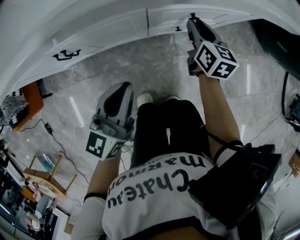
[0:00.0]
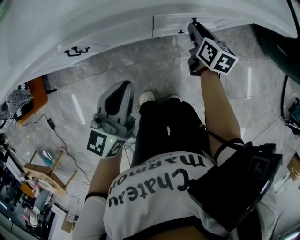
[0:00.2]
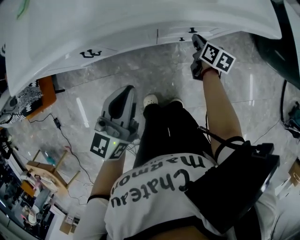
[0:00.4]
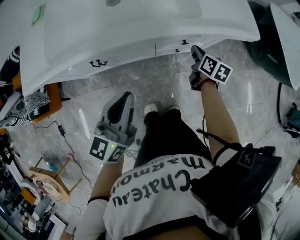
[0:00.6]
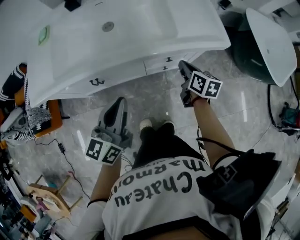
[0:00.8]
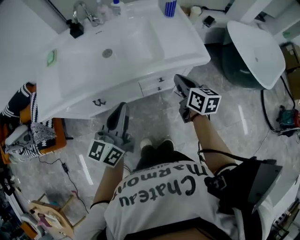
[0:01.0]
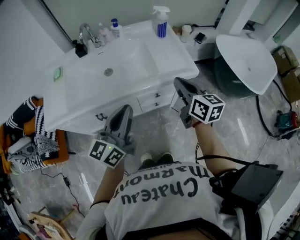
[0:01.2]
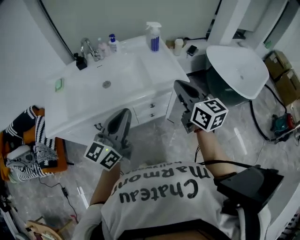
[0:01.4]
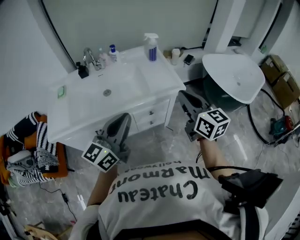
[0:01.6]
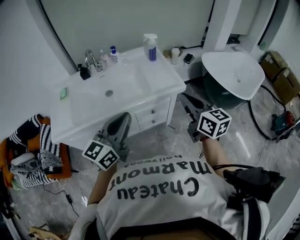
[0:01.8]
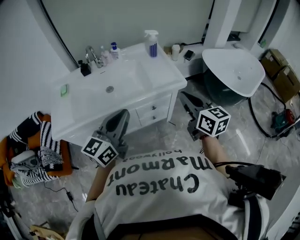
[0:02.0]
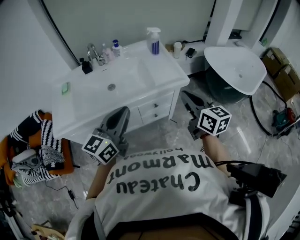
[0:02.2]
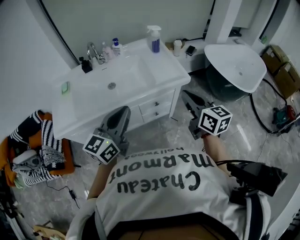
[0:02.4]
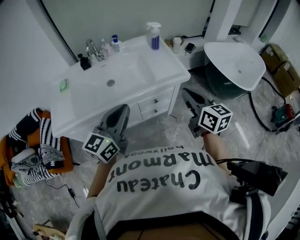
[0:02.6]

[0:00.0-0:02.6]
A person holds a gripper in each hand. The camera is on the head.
0:00.0 to 0:01.2: Both grippers travel together upward, roughly 40 cm. The right gripper closes.
0:01.2 to 0:02.6: The right gripper shifts approximately 10 cm backward and upward; the left gripper goes about 5 cm upward.

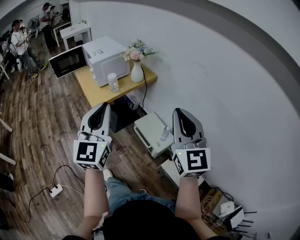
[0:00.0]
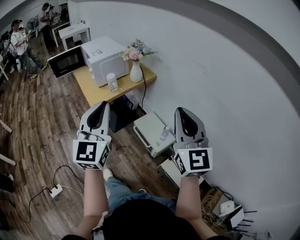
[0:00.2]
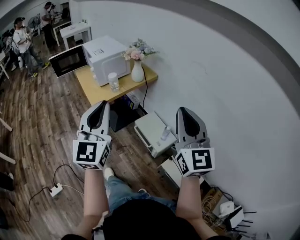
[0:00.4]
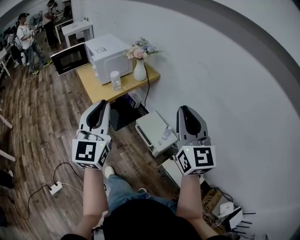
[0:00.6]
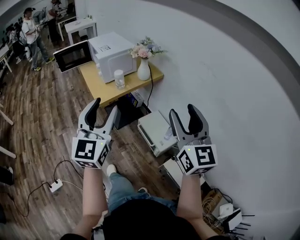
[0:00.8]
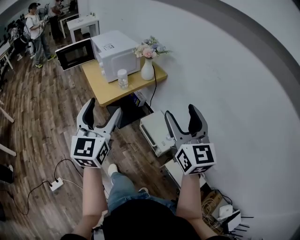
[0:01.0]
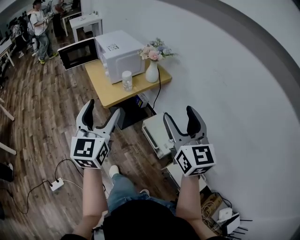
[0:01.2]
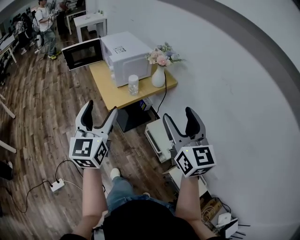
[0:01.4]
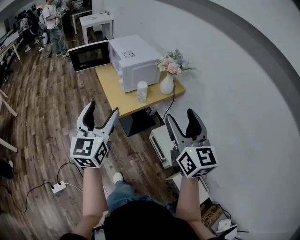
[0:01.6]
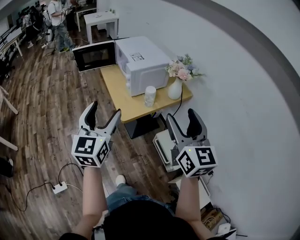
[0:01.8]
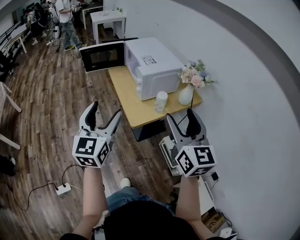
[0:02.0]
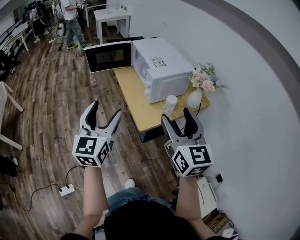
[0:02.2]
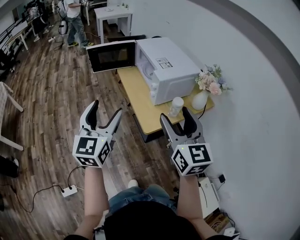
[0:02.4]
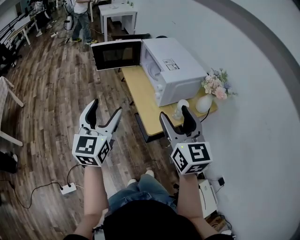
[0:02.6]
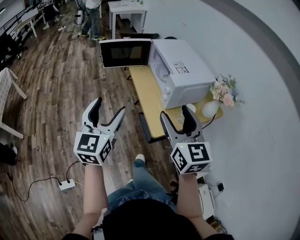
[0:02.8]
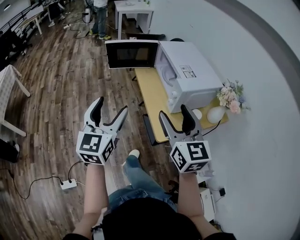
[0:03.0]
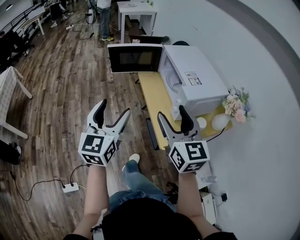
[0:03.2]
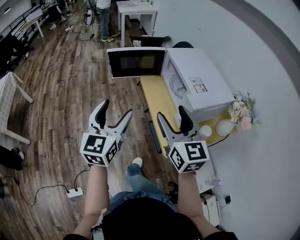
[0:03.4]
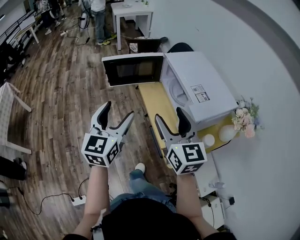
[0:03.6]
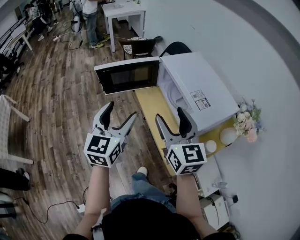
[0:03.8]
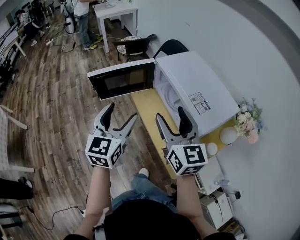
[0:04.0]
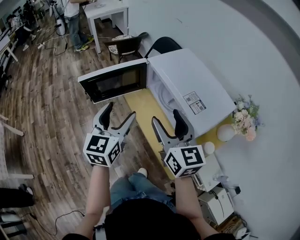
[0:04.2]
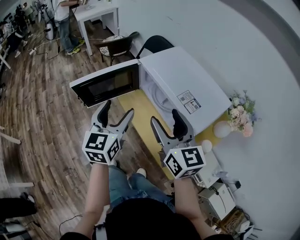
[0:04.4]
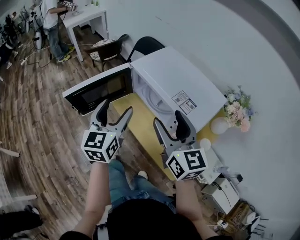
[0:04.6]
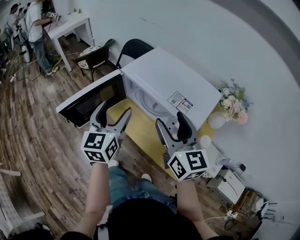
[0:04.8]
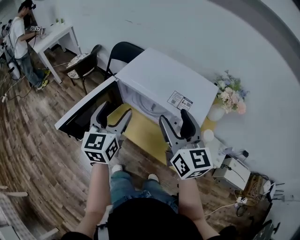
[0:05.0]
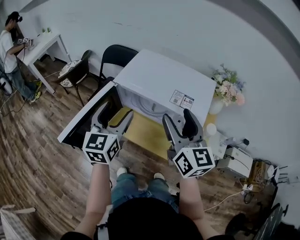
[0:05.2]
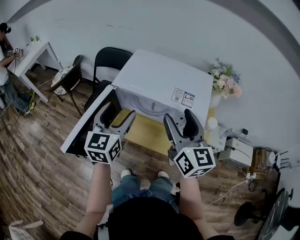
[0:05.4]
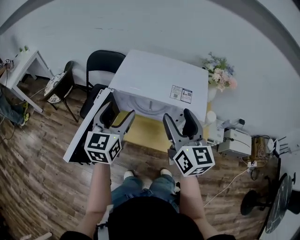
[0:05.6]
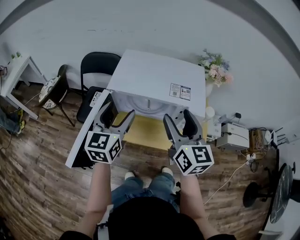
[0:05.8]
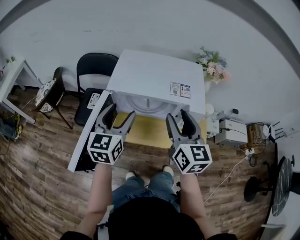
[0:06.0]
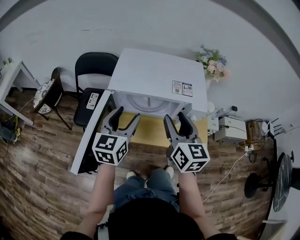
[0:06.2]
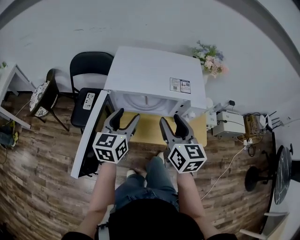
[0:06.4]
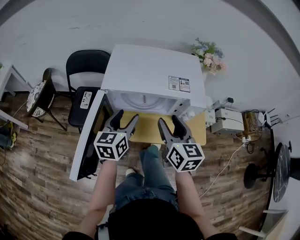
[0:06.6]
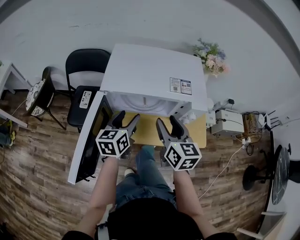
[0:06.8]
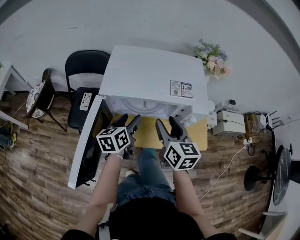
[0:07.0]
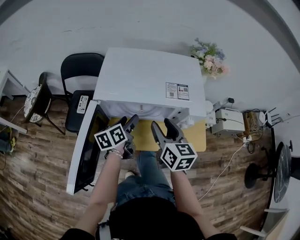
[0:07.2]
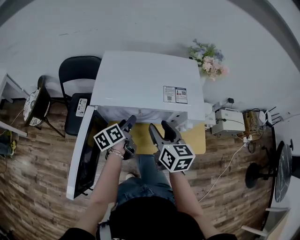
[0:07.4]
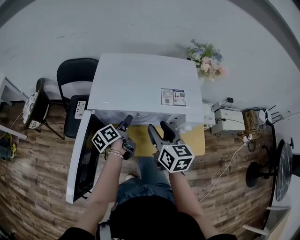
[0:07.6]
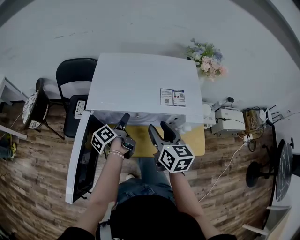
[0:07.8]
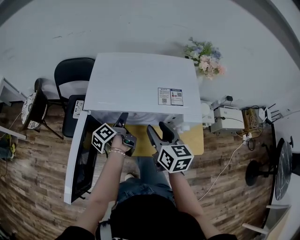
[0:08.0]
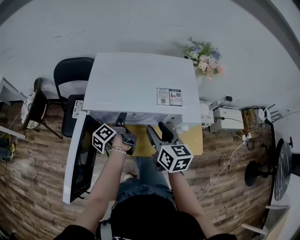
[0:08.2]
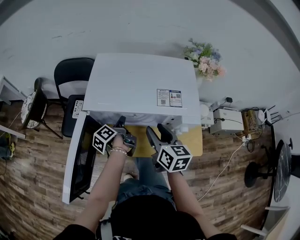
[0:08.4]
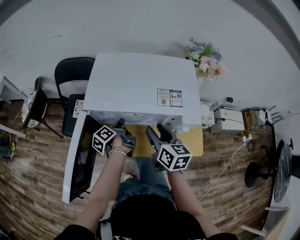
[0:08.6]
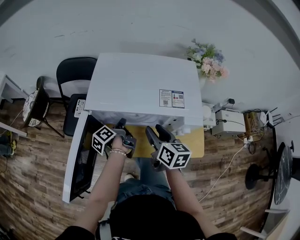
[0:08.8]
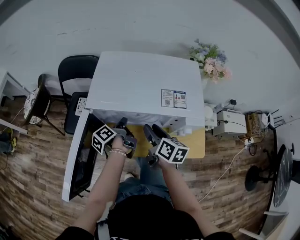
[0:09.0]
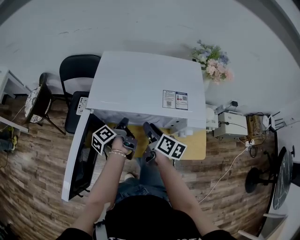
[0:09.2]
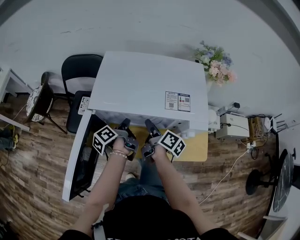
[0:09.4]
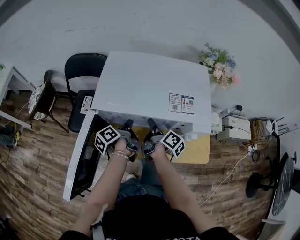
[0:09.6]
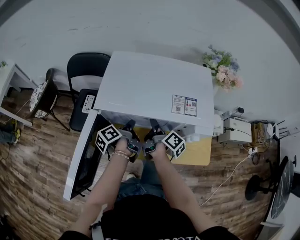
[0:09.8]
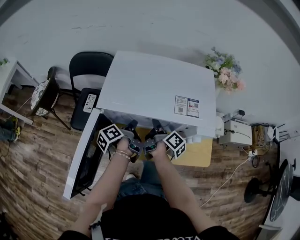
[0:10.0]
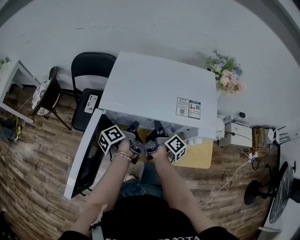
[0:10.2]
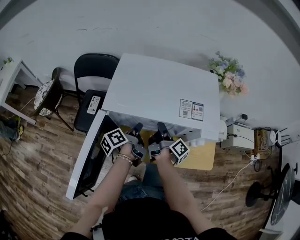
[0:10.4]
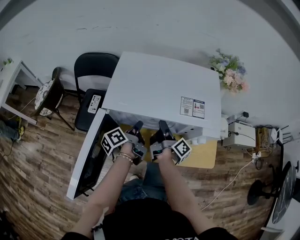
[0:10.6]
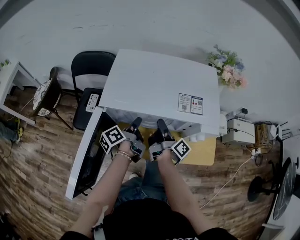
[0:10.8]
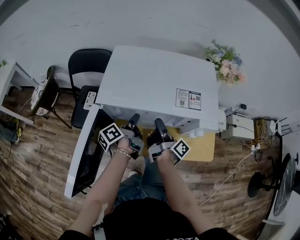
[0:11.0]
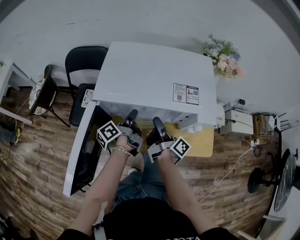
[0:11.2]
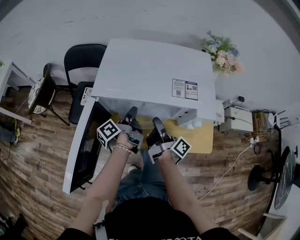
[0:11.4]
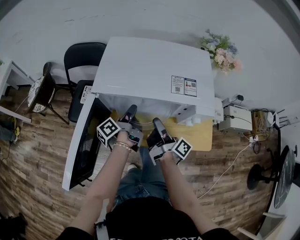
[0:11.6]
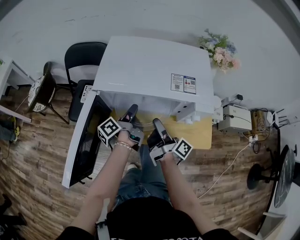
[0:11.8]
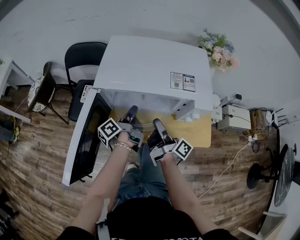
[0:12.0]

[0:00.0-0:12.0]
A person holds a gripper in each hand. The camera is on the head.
0:00.0 to 0:01.6: The grippers both shift to the left and forward by roughly 20 cm. The right gripper turns by approximately 20 degrees, and opens, while the left gripper opens its fingers.
0:01.6 to 0:03.0: The two grippers go some 35 cm to the left and forward.
0:03.0 to 0:04.4: Both grippers move forward, roughly 30 cm. The left gripper turns by some 20 degrees.
0:04.4 to 0:06.0: The right gripper swivels some 50 degrees. The left gripper changes place by some 15 cm, and swivels roughly 50 degrees.
0:06.0 to 0:07.6: The left gripper moves downward and forward, about 25 cm, and rotates around the line of its fingers by about 60 degrees, counterclockwise from behind, while the right gripper heads downward and forward, covering approximately 15 cm.
0:07.6 to 0:09.0: The left gripper turns by some 20 degrees, and closes, while the right gripper goes approximately 5 cm downward, and turns by roughly 20 degrees.
0:09.0 to 0:10.4: The right gripper moves forward, some 5 cm, twists some 50 degrees clockwise, seen from behind, and closes up.
0:10.4 to 0:12.0: The right gripper goes approximately 10 cm backward.

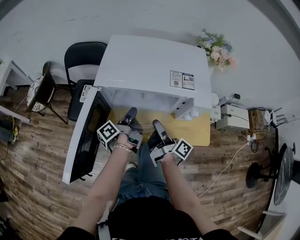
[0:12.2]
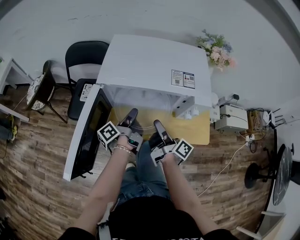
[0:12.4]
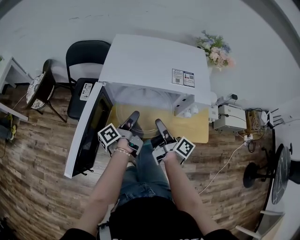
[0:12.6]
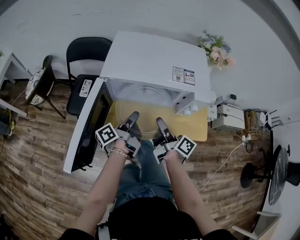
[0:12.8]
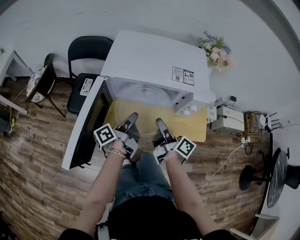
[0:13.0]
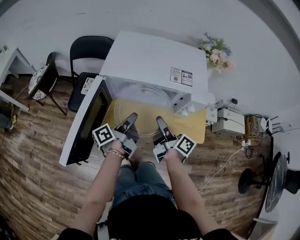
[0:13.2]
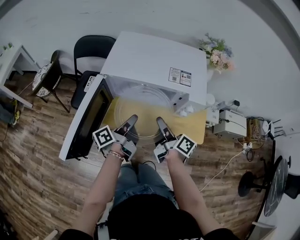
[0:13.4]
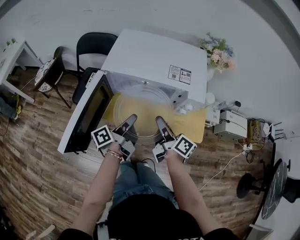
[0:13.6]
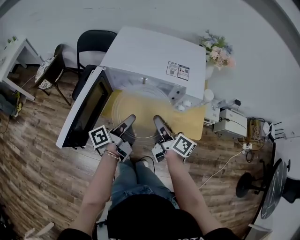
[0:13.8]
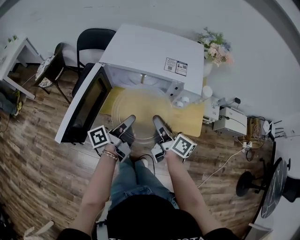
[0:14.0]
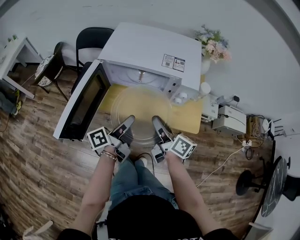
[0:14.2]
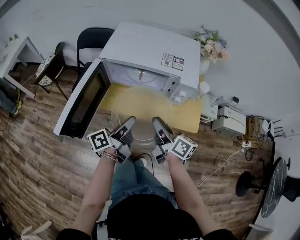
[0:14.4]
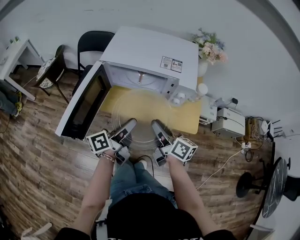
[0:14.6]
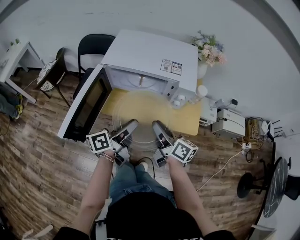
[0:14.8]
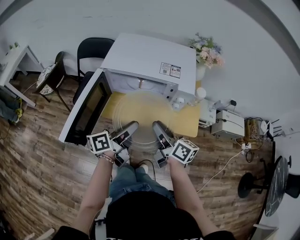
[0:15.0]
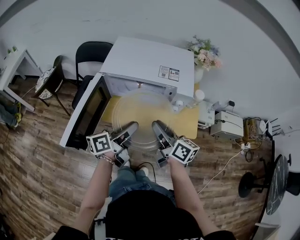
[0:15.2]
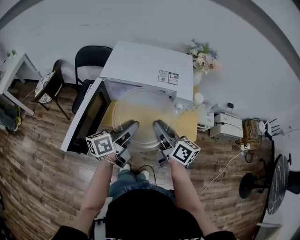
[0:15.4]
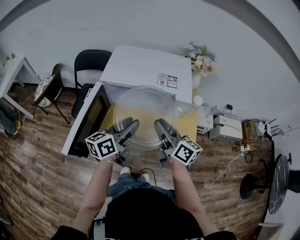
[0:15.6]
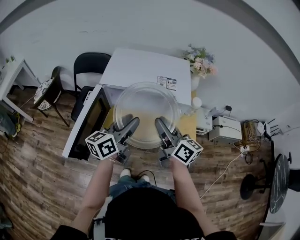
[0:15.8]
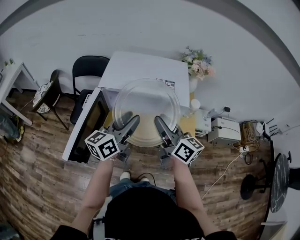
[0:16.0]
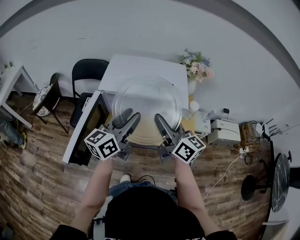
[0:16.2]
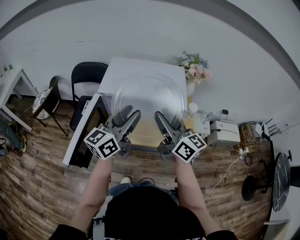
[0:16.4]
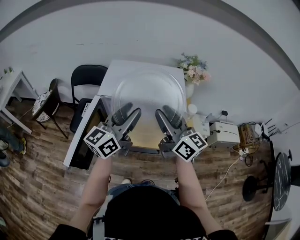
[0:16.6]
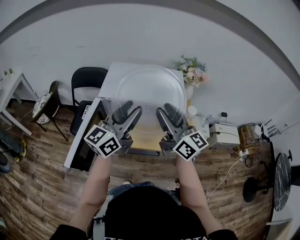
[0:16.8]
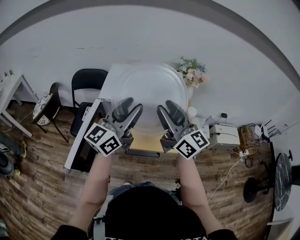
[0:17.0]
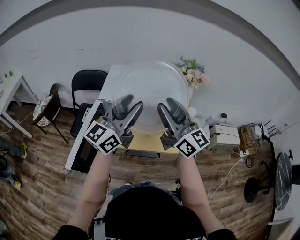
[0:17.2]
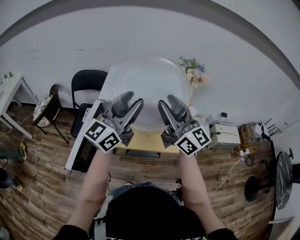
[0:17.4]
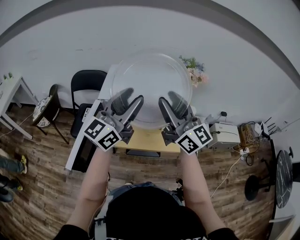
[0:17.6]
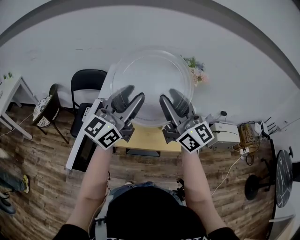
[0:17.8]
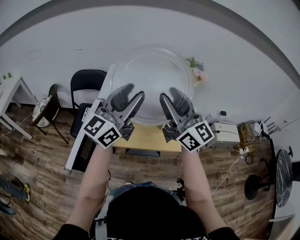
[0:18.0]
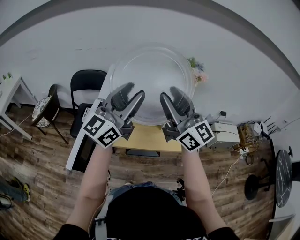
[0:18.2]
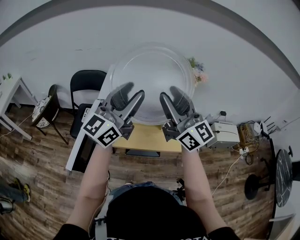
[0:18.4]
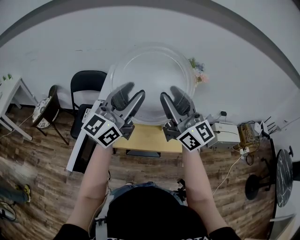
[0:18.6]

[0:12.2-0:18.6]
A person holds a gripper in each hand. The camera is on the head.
0:12.2 to 0:13.8: The right gripper goes about 10 cm backward and upward, and swivels roughly 30 degrees. Meanwhile the left gripper moves backward and upward, about 15 cm.
0:13.8 to 0:15.4: Both grippers travel together upward, approximately 5 cm. The left gripper turns by approximately 30 degrees.
0:15.4 to 0:17.0: The two grippers go approximately 15 cm upward. The left gripper turns by about 40 degrees, while the right gripper rotates some 40 degrees.
0:17.0 to 0:18.6: Both grippers move upward, about 5 cm.

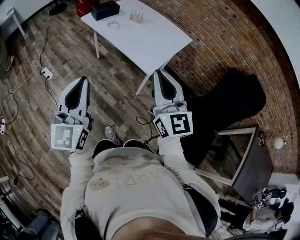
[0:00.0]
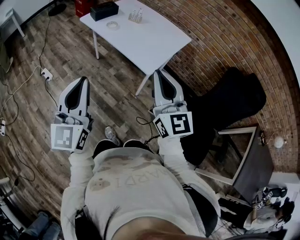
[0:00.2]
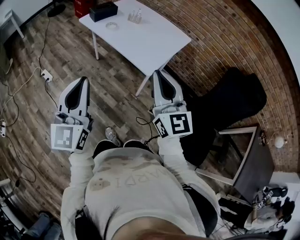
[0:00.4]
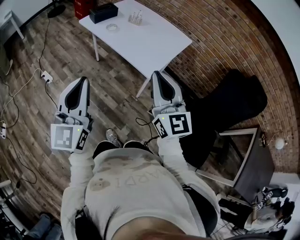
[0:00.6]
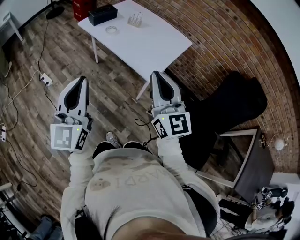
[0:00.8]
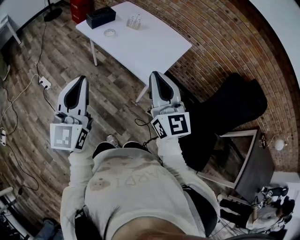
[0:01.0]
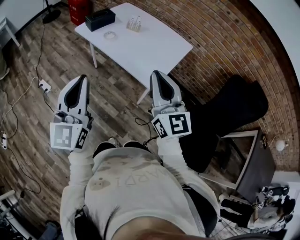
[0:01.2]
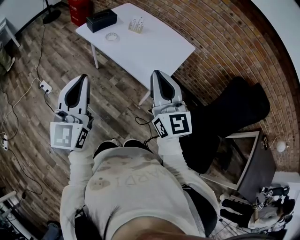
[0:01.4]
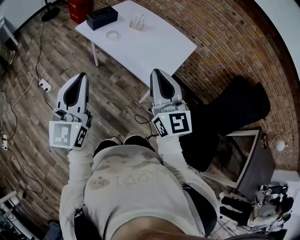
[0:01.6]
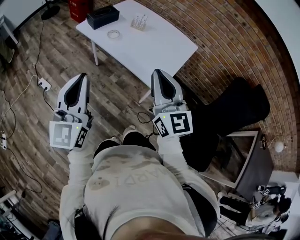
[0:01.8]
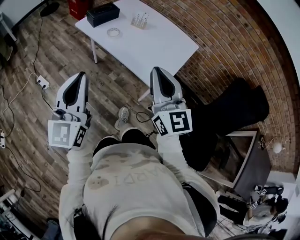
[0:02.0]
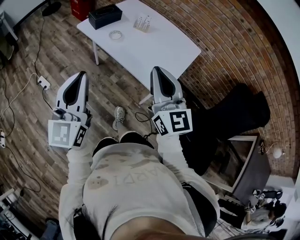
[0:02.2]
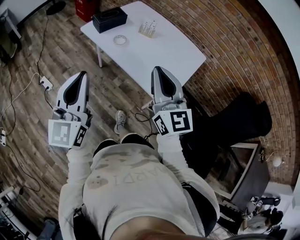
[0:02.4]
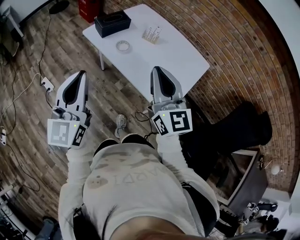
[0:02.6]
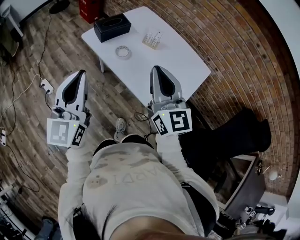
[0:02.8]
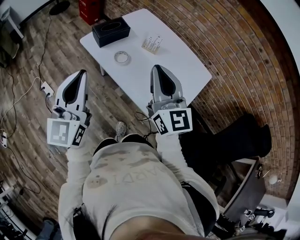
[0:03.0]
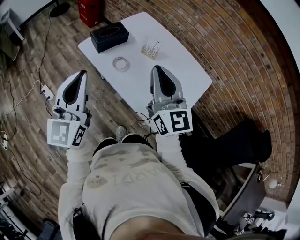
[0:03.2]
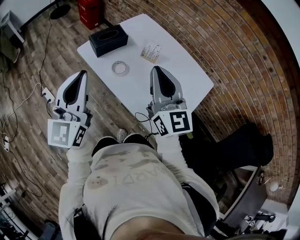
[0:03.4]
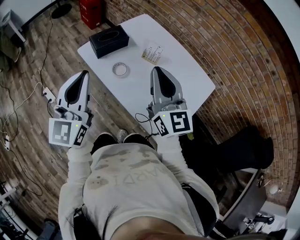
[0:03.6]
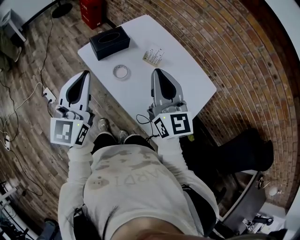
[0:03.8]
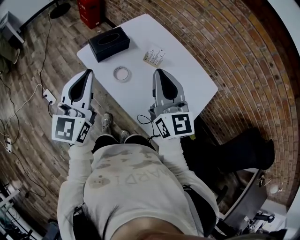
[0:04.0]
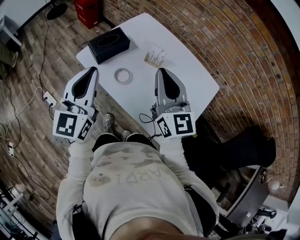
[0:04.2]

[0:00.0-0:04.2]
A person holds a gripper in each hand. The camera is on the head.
0:00.0 to 0:01.4: Both grippers move forward, some 15 cm.
0:01.4 to 0:02.8: Both grippers move forward, roughly 25 cm.
0:02.8 to 0:04.2: Both grippers travel together forward, approximately 20 cm.
